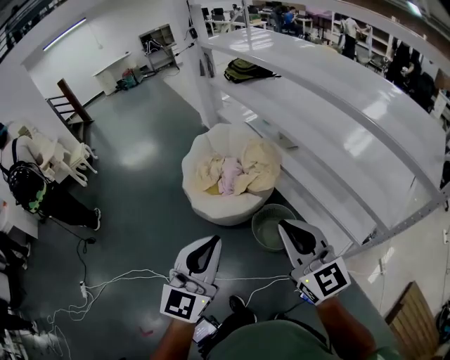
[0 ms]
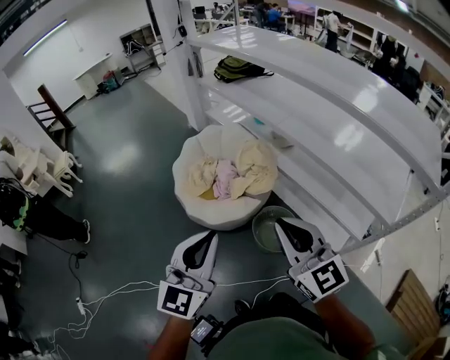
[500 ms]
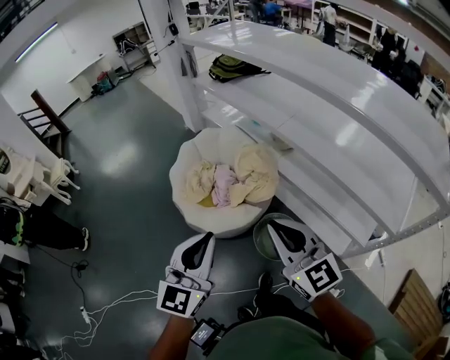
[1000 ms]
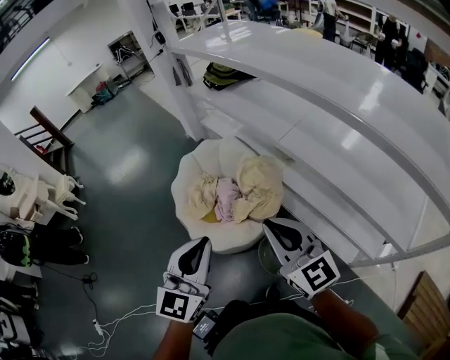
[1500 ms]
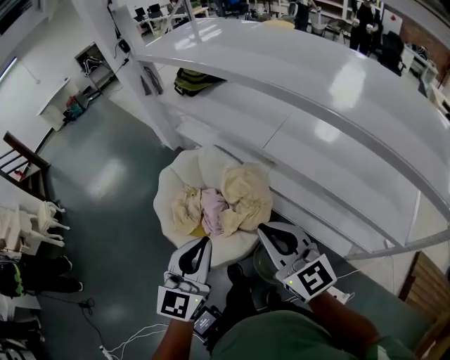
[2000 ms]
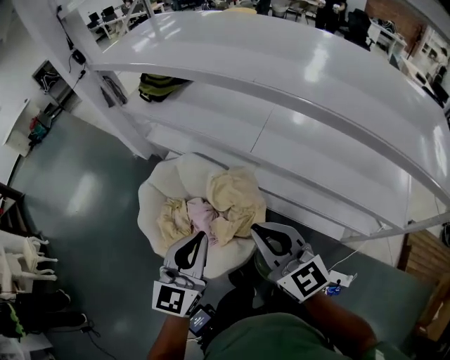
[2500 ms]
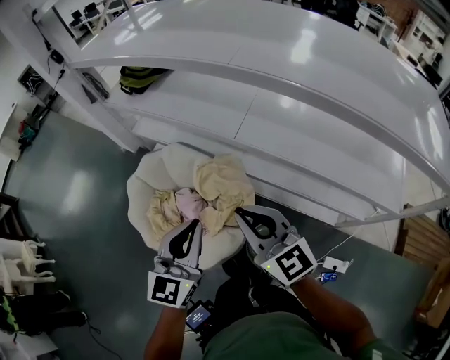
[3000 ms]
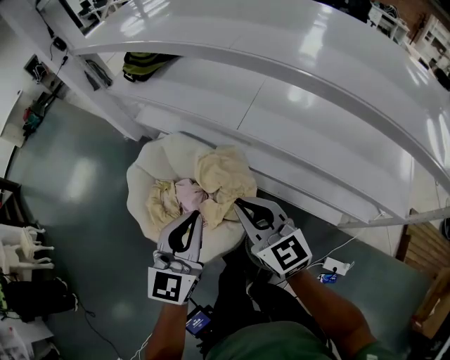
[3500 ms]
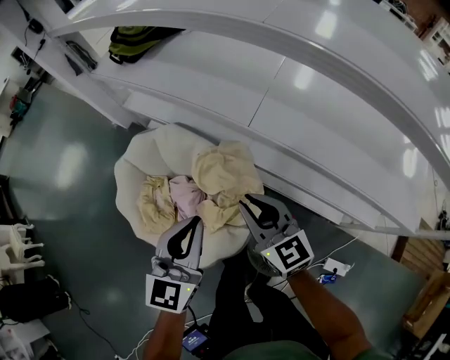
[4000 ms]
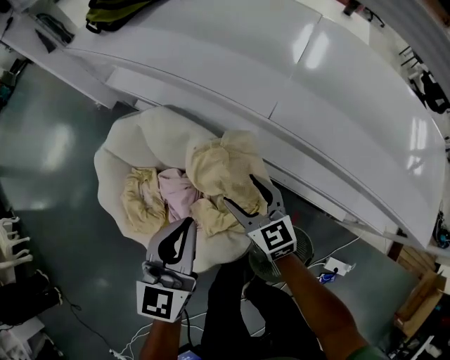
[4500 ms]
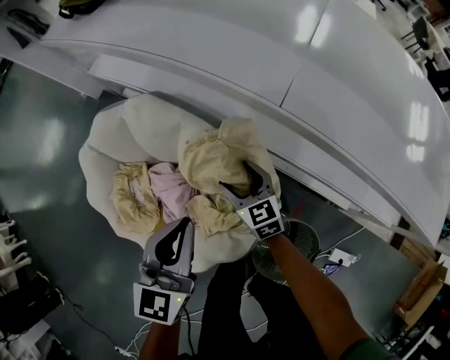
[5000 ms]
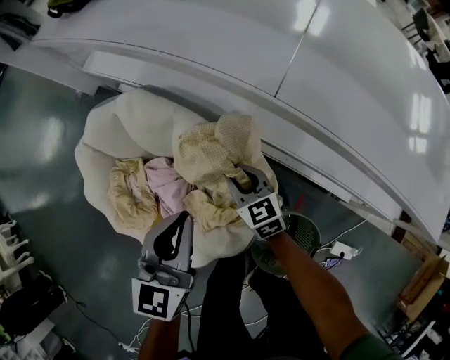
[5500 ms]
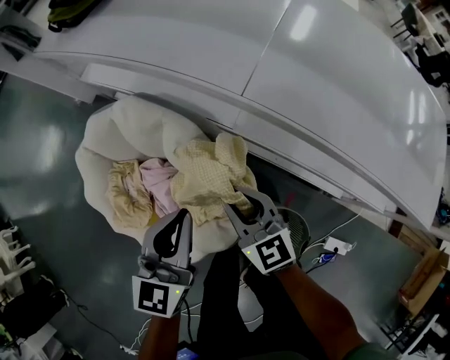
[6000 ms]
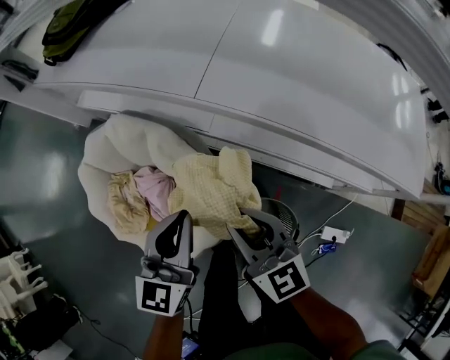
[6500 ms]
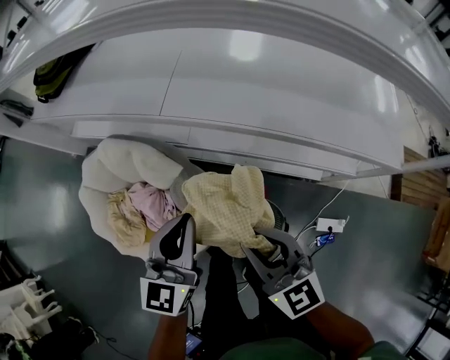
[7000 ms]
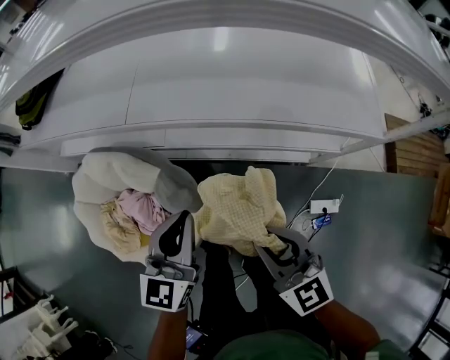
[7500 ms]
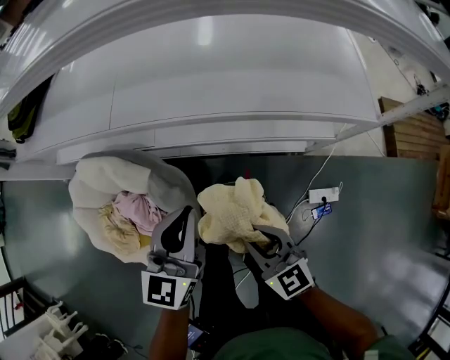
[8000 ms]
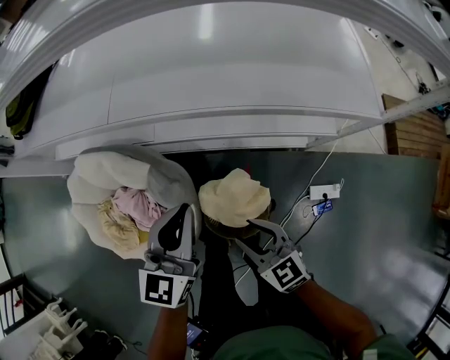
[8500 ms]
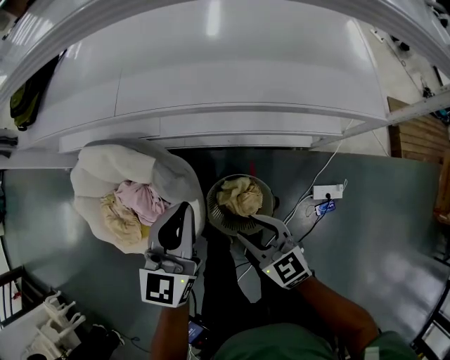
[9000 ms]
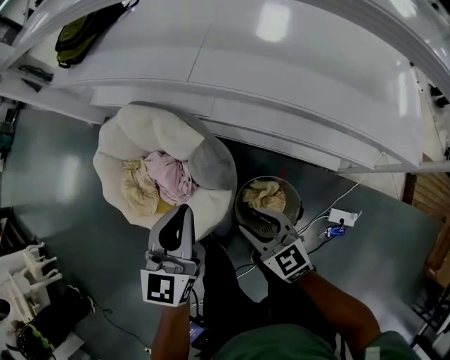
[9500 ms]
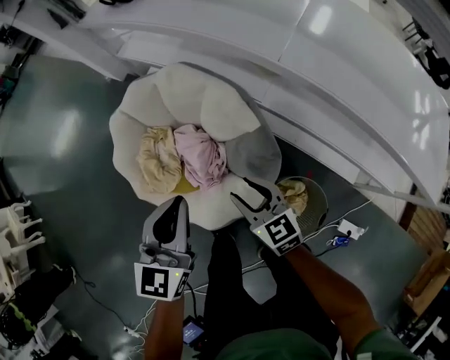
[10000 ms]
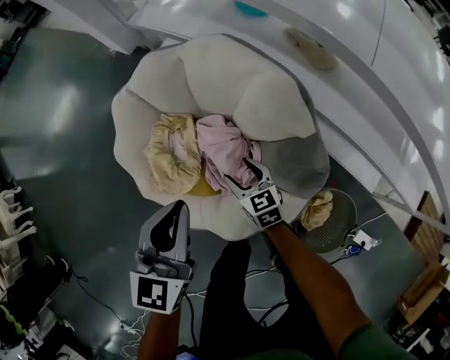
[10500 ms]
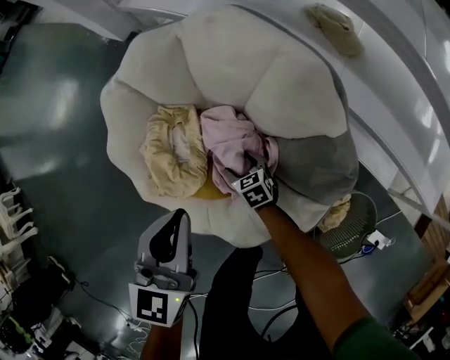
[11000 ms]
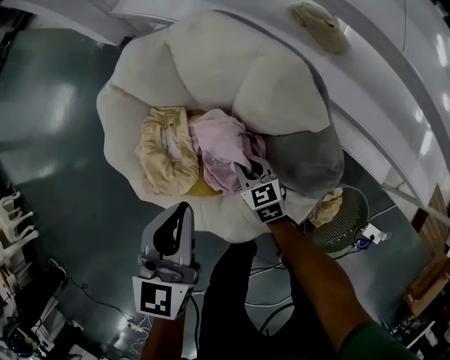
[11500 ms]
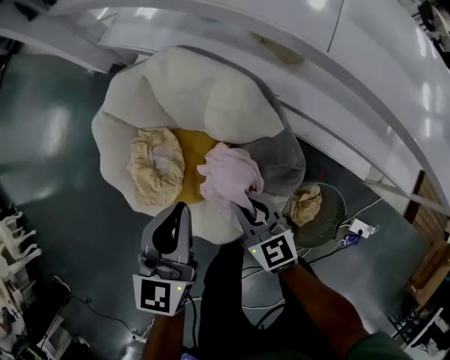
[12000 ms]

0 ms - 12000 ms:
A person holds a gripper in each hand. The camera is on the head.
0 ms - 2000 ms: Both grippers travel together forward, approximately 40 cm.
2000 ms - 4000 ms: Both grippers travel together forward and downward, about 30 cm.
4000 ms - 6000 ms: The right gripper shifts about 20 cm downward, and opens, then closes once more. The left gripper is displaced downward and forward by approximately 20 cm.
6000 ms - 8000 ms: Both grippers travel together to the right and backward, roughly 35 cm. The left gripper turns by approximately 20 degrees. The right gripper rotates roughly 20 degrees.
8000 ms - 10000 ms: The right gripper shifts by approximately 40 cm, and swivels some 30 degrees; the left gripper moves some 40 cm, and changes its angle by approximately 30 degrees.
10000 ms - 12000 ms: The right gripper travels forward and to the left by about 10 cm, moves some 40 cm downward and comes back, and closes. The left gripper heads downward and forward, covering roughly 15 cm.

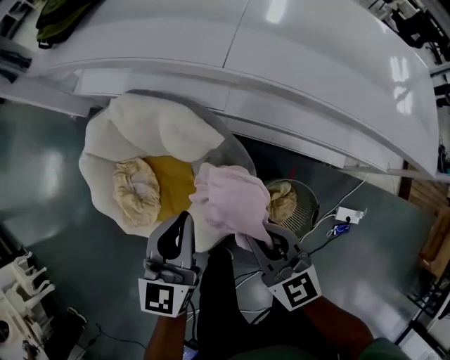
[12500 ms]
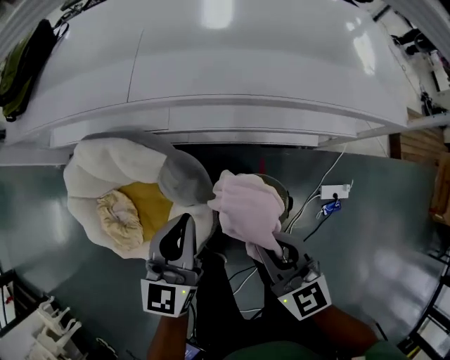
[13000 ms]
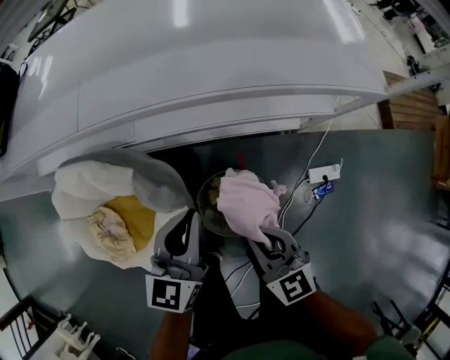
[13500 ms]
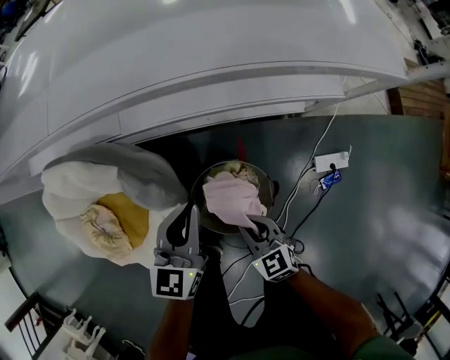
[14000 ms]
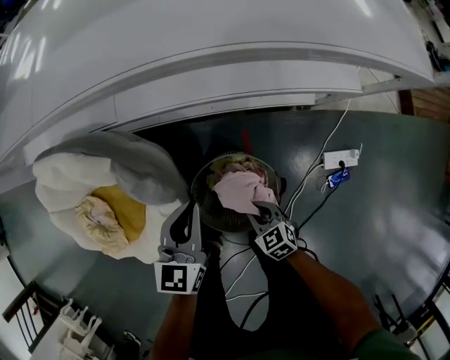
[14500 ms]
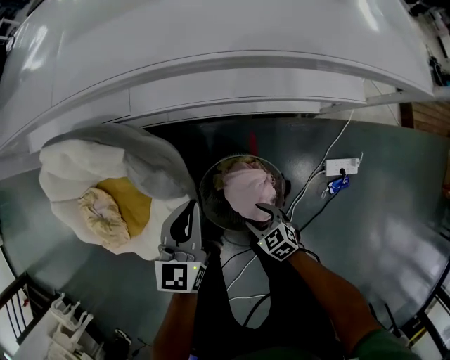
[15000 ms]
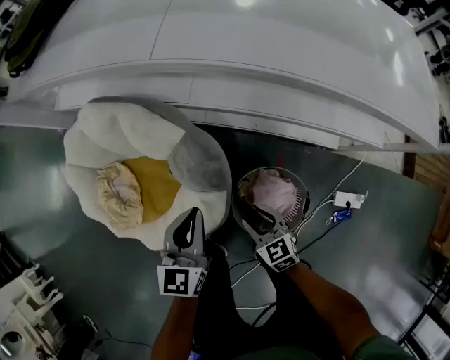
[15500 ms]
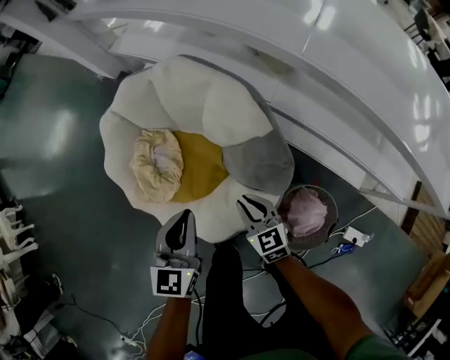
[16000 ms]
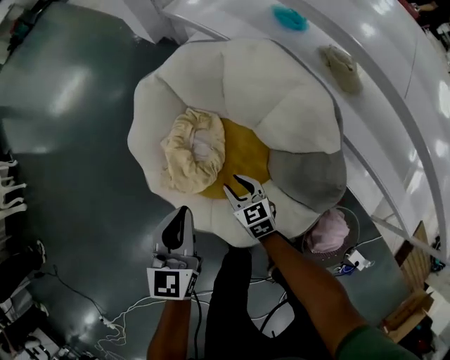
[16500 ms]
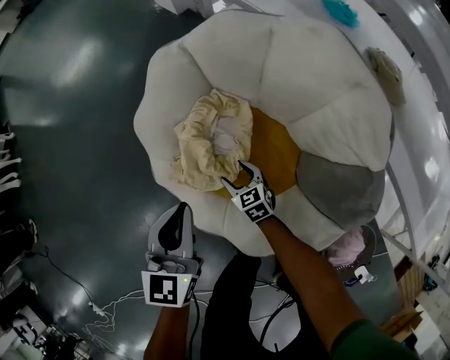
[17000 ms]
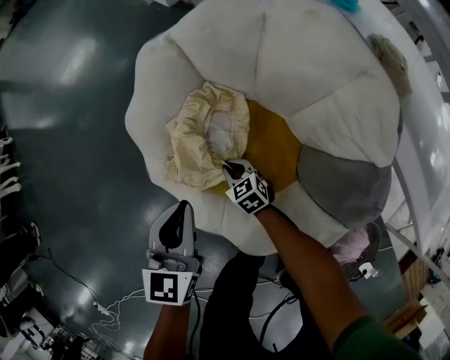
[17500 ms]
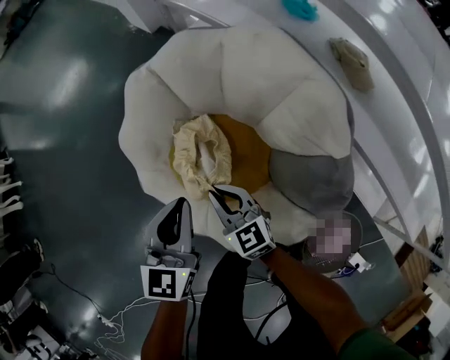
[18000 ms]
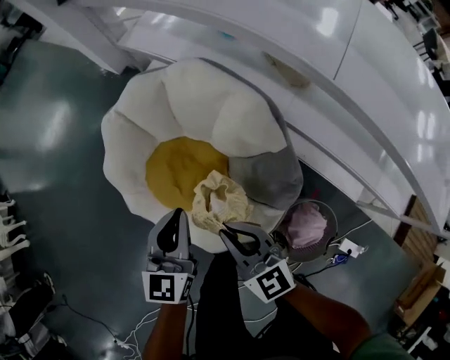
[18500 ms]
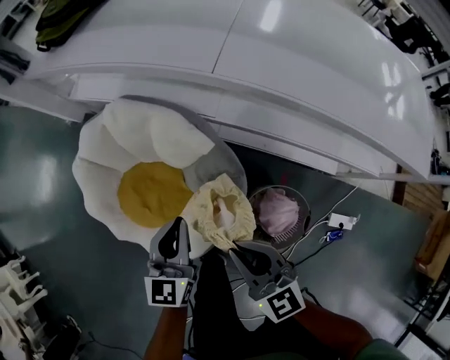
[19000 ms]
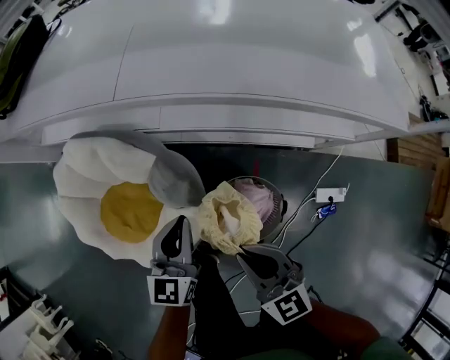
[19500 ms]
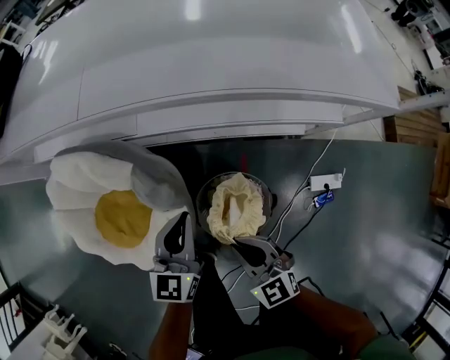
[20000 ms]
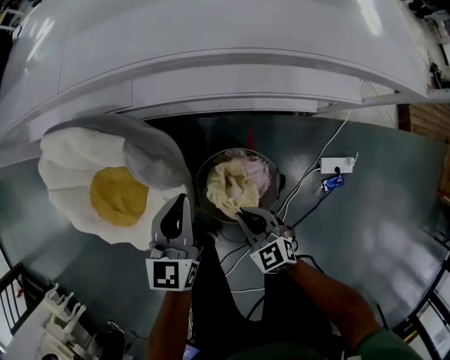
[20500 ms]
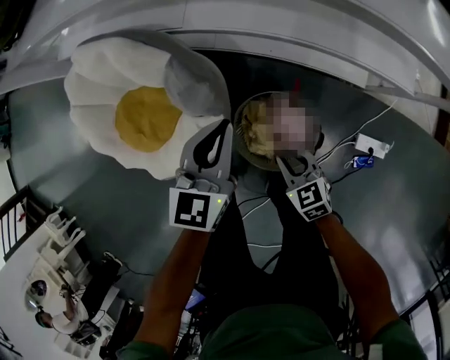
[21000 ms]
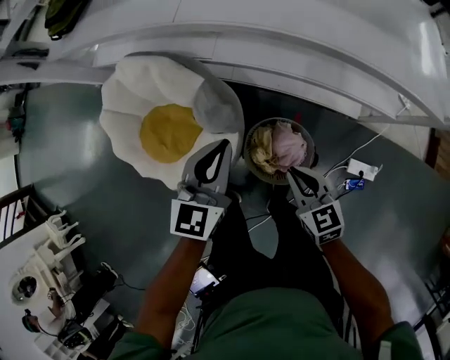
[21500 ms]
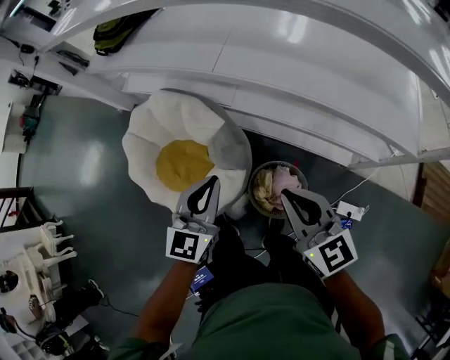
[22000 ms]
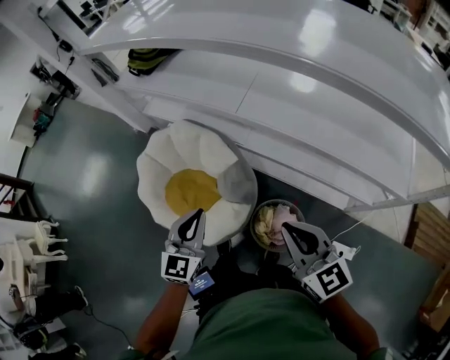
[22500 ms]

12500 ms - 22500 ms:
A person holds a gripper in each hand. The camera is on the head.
12500 ms - 14500 ms: The left gripper shifts about 35 cm to the right and downward, and rotates approximately 20 degrees; the right gripper goes roughly 50 cm downward and to the right, and changes its angle by approximately 30 degrees.
14500 ms - 16500 ms: The two grippers travel together, about 60 cm. The right gripper rotates about 30 degrees. Meanwhile the left gripper turns by roughly 50 degrees.
16500 ms - 18500 ms: The right gripper heads upward, covering roughly 25 cm, and closes its fingers. The left gripper goes about 15 cm to the right and upward.
18500 ms - 20500 ms: Both grippers are carried roughly 40 cm. The left gripper turns by about 30 degrees. Meanwhile the right gripper rotates roughly 30 degrees.
20500 ms - 22500 ms: The left gripper goes roughly 35 cm upward and to the left, and changes its angle by approximately 20 degrees. The right gripper is displaced upward by about 50 cm, and turns by about 30 degrees.

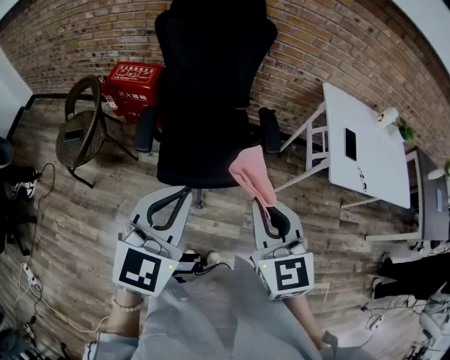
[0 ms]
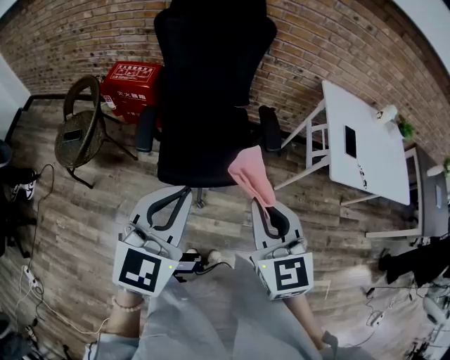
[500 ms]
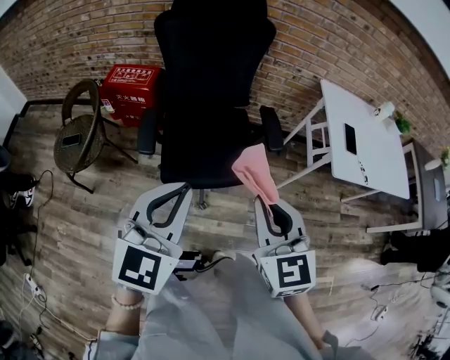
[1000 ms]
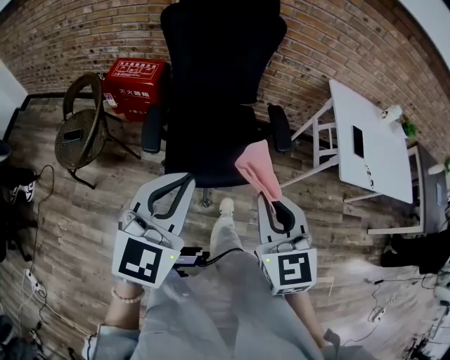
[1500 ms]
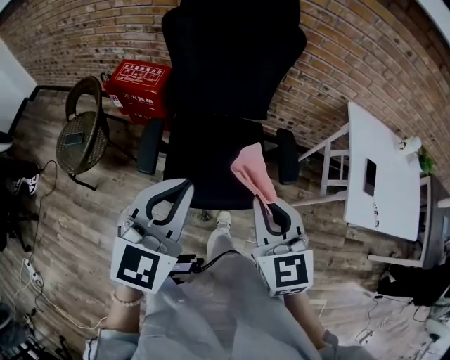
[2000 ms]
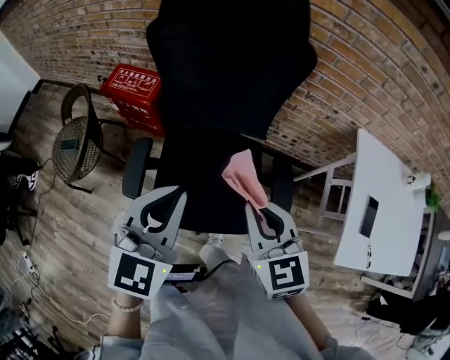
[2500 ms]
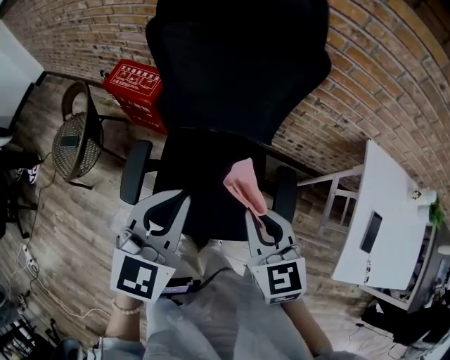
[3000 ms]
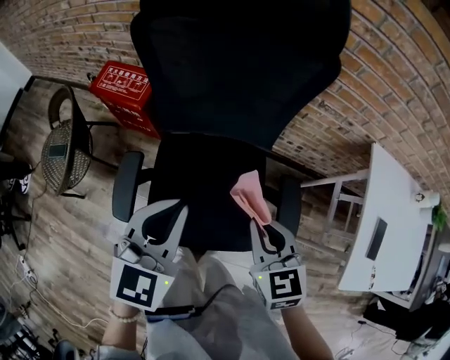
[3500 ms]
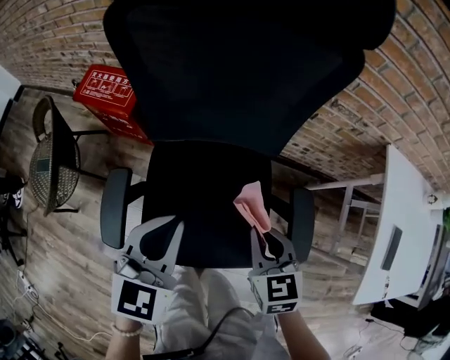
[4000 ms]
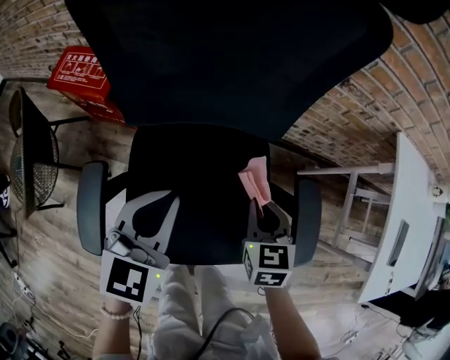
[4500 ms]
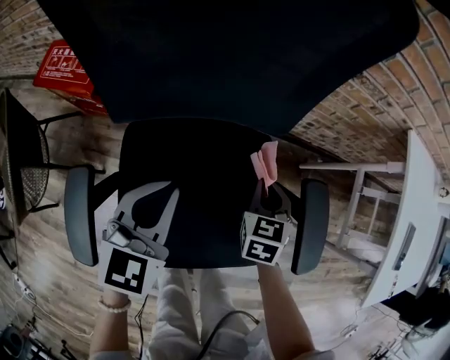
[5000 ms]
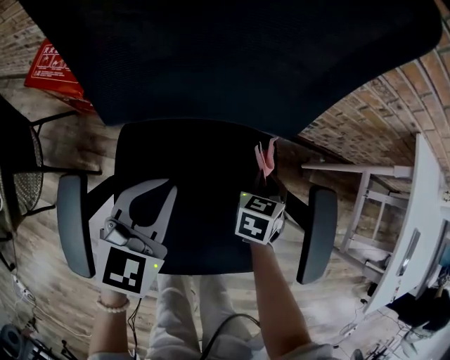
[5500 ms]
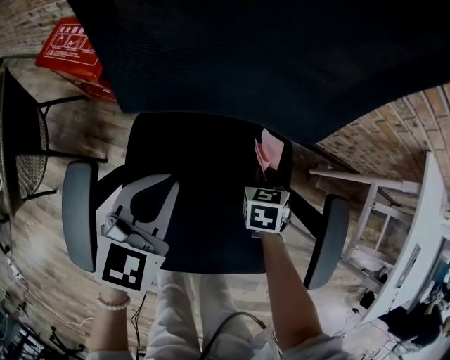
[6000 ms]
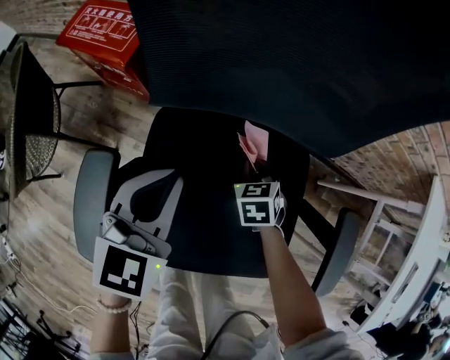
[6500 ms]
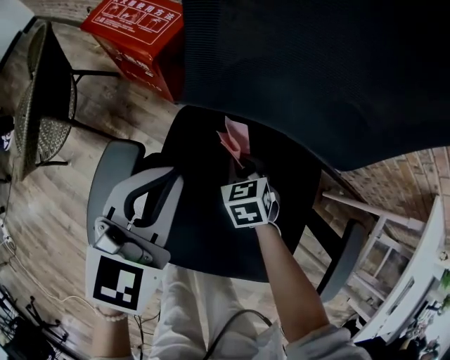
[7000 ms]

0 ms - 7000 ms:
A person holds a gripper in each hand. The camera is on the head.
0 ms - 2000 ms: Both grippers travel together forward, roughly 20 cm.
2000 ms - 3500 ms: Both grippers travel together forward and downward, approximately 25 cm.
3500 ms - 5000 ms: The two grippers go about 30 cm downward and forward. The right gripper changes its angle by roughly 30 degrees.
5000 ms - 7000 ms: The right gripper ends up about 25 cm from where it was, and swivels some 40 degrees. The left gripper ends up approximately 15 cm from where it was.
